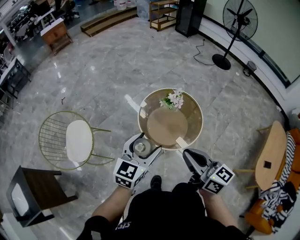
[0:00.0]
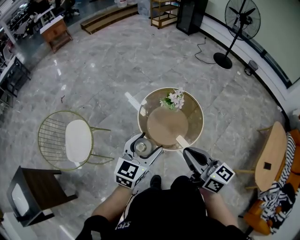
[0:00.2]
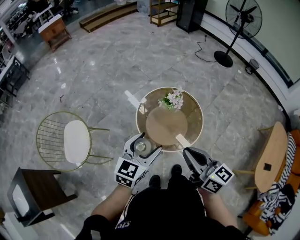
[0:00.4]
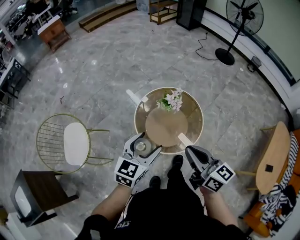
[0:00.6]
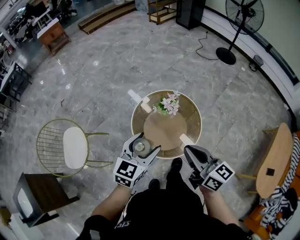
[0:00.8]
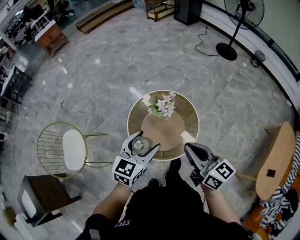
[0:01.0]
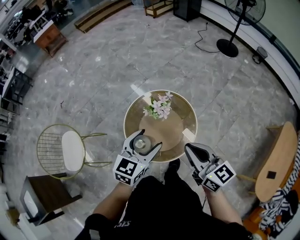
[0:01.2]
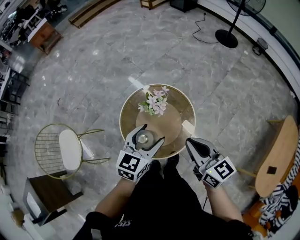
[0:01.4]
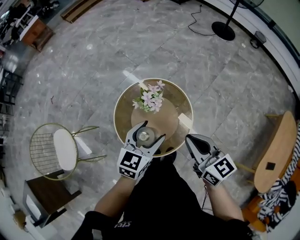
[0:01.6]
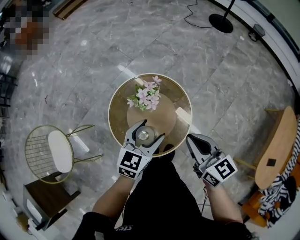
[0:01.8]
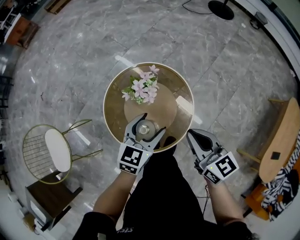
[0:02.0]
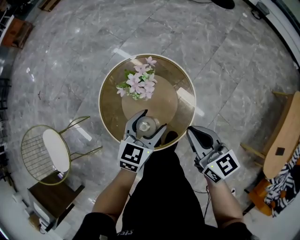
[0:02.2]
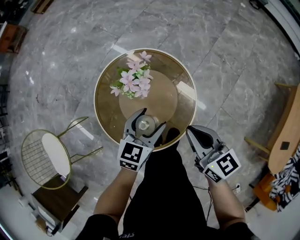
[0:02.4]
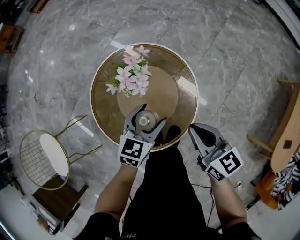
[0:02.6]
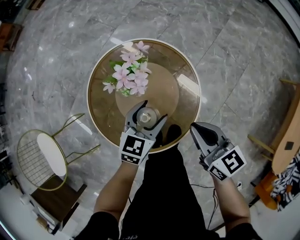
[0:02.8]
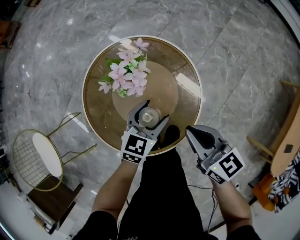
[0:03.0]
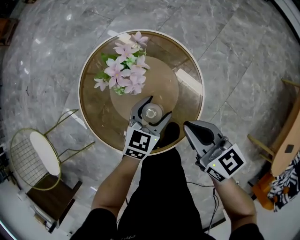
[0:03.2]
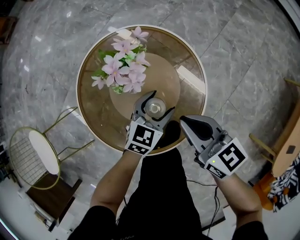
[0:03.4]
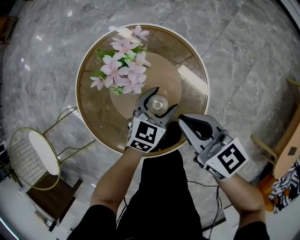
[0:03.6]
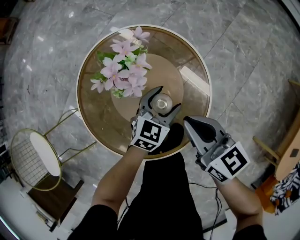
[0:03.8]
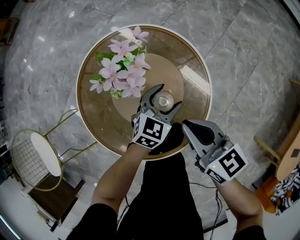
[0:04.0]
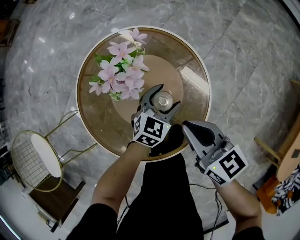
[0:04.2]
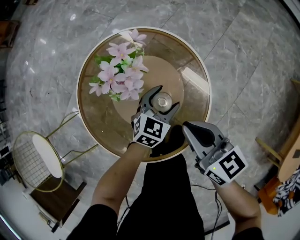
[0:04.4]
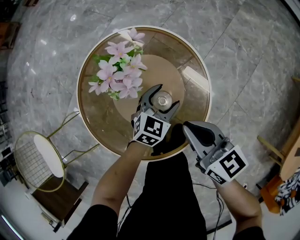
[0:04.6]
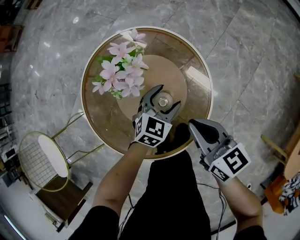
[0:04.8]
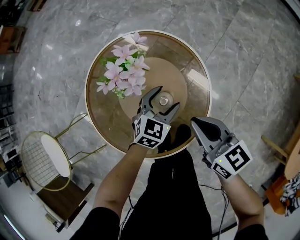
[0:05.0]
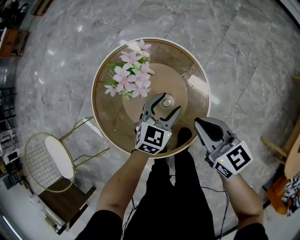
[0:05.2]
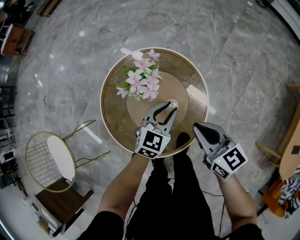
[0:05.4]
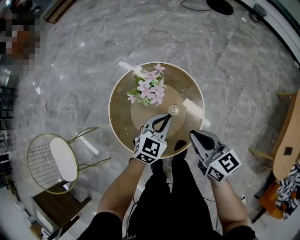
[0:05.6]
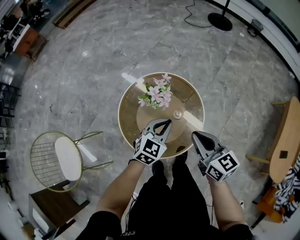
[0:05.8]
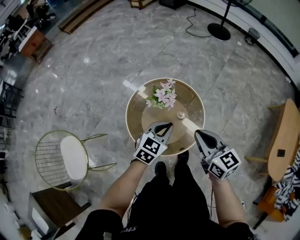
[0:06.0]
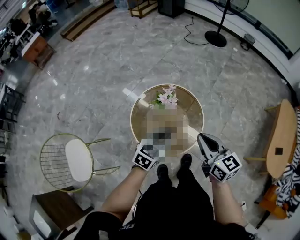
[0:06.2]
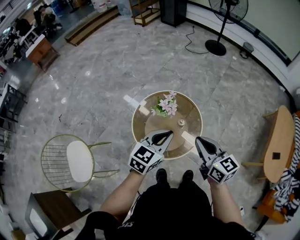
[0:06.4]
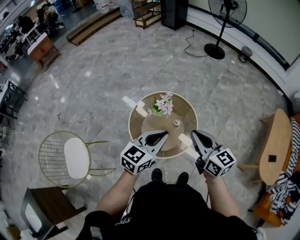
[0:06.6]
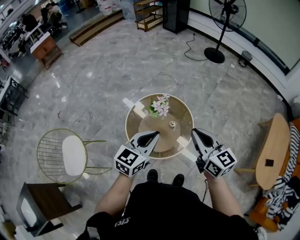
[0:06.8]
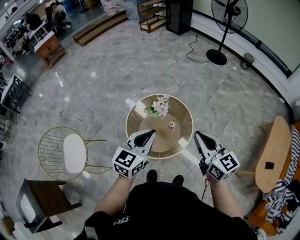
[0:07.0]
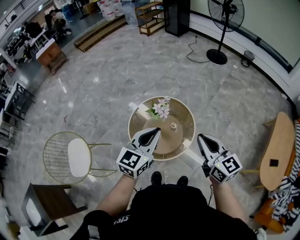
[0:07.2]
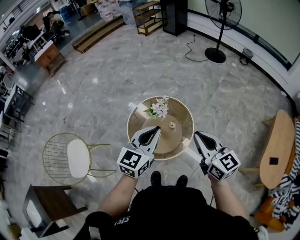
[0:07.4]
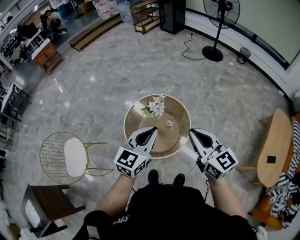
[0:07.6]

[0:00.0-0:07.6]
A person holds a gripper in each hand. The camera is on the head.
0:00.0 to 0:01.6: The left gripper is displaced to the right, forward and downward by some 40 cm. Meanwhile the right gripper is displaced forward, to the right and downward by about 40 cm.
0:01.6 to 0:03.0: Both grippers travel together downward, about 35 cm.
0:03.0 to 0:04.6: The left gripper travels downward by about 10 cm; the right gripper is displaced downward by some 5 cm.
0:04.6 to 0:06.0: The two grippers go approximately 35 cm upward. The left gripper closes its fingers.
0:06.0 to 0:07.6: The grippers both shift upward and backward by roughly 25 cm. The left gripper turns by about 20 degrees.

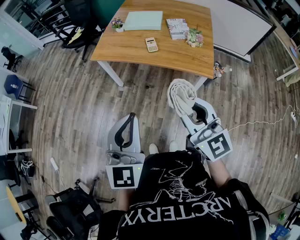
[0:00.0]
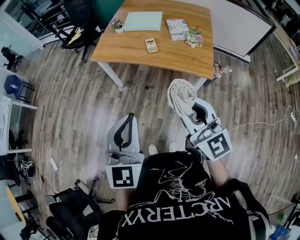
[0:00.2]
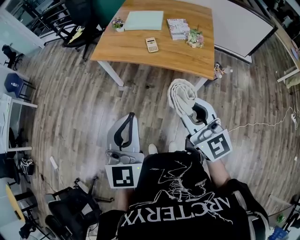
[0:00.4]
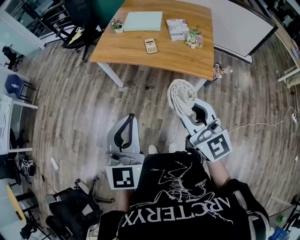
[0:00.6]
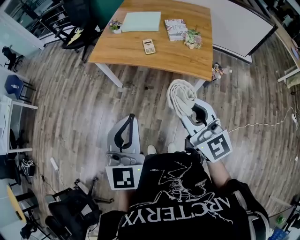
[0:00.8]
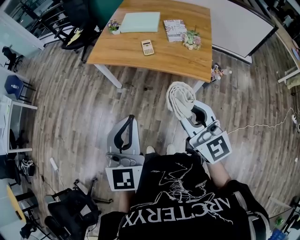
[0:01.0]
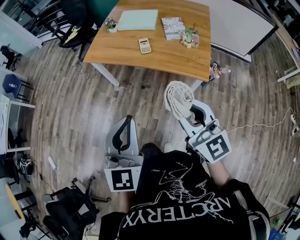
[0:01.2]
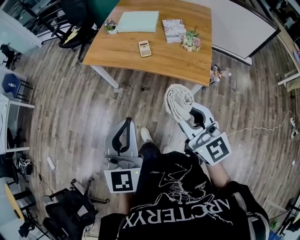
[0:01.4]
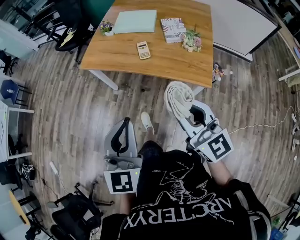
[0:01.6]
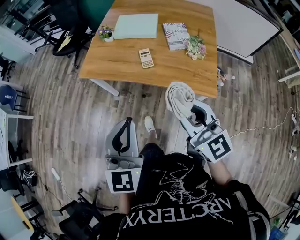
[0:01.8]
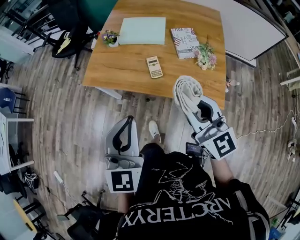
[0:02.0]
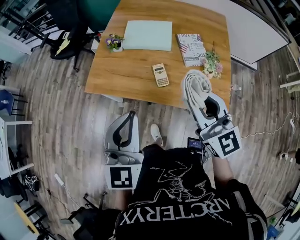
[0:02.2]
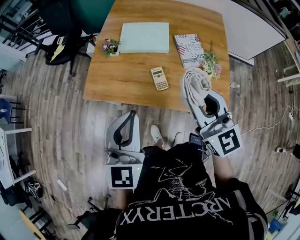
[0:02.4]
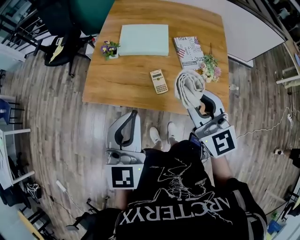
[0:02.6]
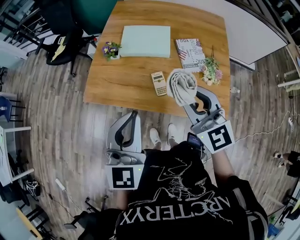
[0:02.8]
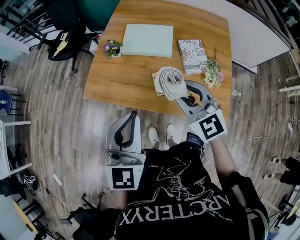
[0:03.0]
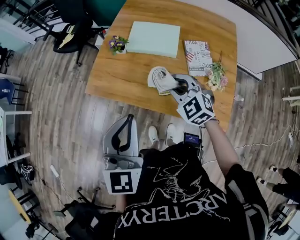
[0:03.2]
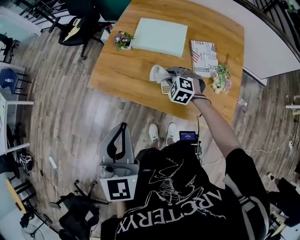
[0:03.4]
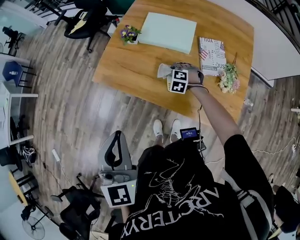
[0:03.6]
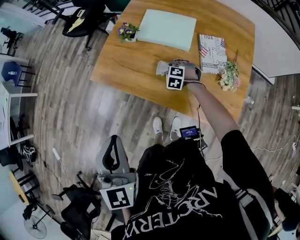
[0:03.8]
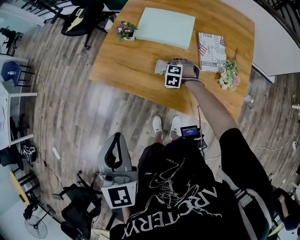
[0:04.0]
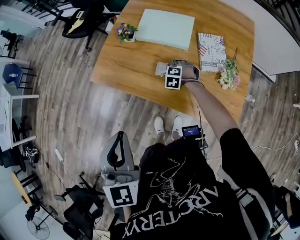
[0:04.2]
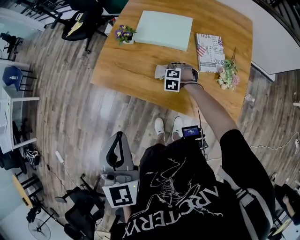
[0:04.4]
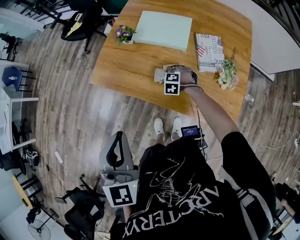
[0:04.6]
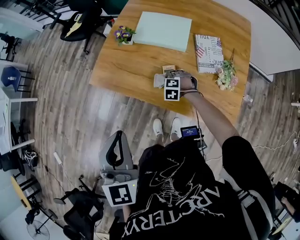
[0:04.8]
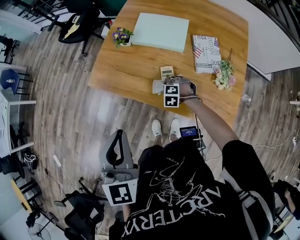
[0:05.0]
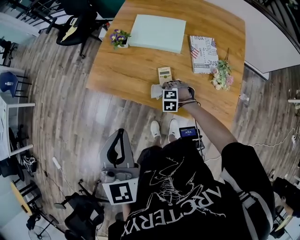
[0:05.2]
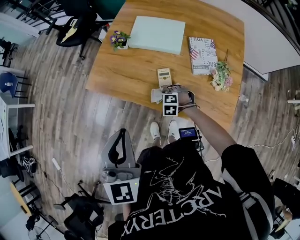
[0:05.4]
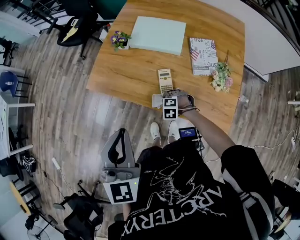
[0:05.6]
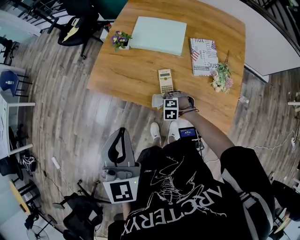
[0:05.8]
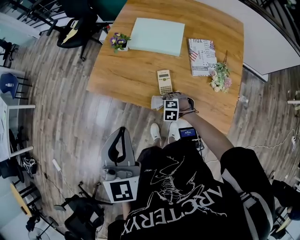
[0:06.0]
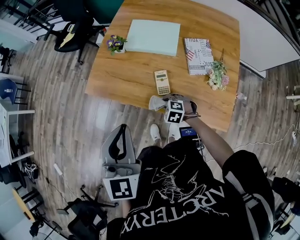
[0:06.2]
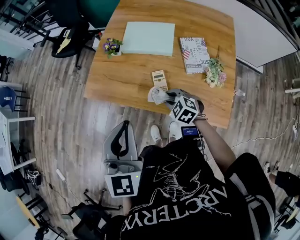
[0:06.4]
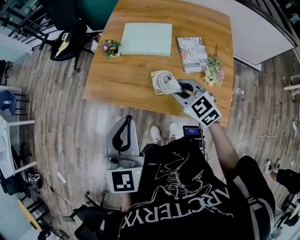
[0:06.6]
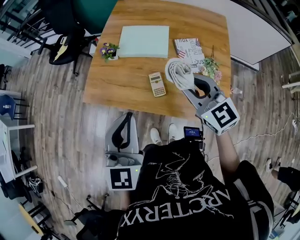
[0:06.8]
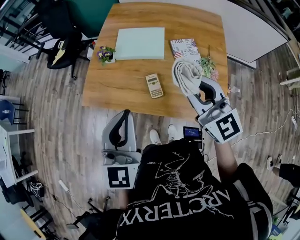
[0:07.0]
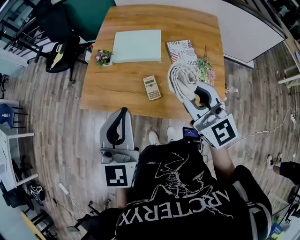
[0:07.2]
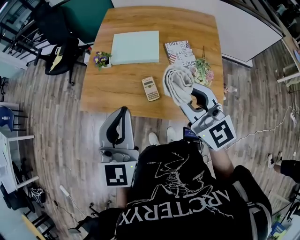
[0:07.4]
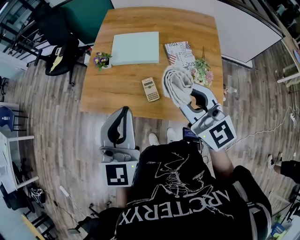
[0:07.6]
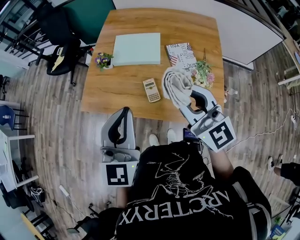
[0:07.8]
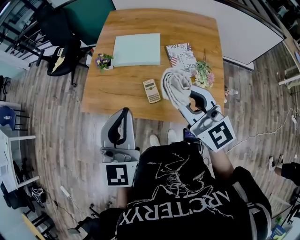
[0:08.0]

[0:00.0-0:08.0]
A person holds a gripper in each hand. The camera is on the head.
0:00.0 to 0:01.6: Both grippers travel together forward and to the right, some 10 cm.
0:01.6 to 0:03.2: Both grippers move forward, approximately 35 cm. The right gripper tilts its fingers approximately 40 degrees downward.
0:03.2 to 0:04.8: The right gripper travels downward by roughly 30 cm, and points its fingers about 40 degrees further downward, while the left gripper shifts by some 5 cm.
0:04.8 to 0:06.4: The right gripper is displaced upward by approximately 15 cm, and changes its angle by some 30 degrees; the left gripper changes place by about 5 cm.
0:06.4 to 0:08.0: The left gripper shifts by some 5 cm. The right gripper is displaced upward by approximately 30 cm, and tilts its fingers some 50 degrees upward.

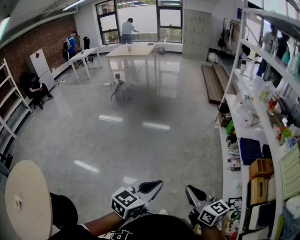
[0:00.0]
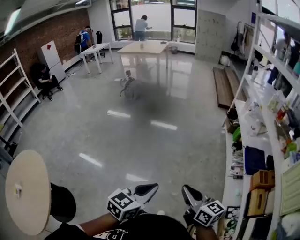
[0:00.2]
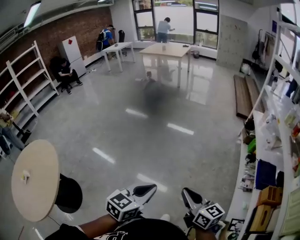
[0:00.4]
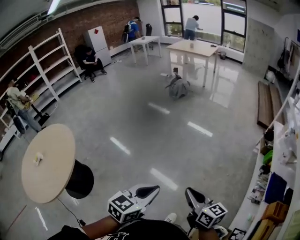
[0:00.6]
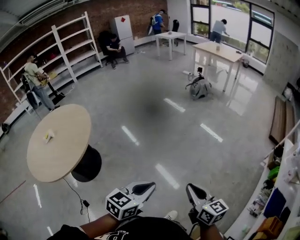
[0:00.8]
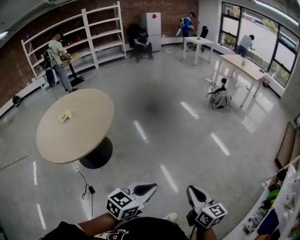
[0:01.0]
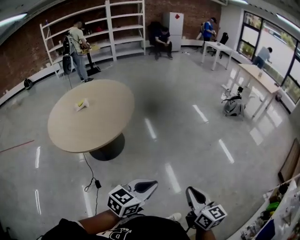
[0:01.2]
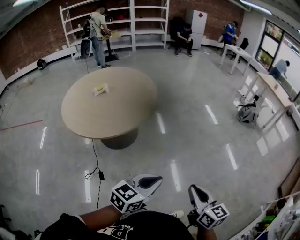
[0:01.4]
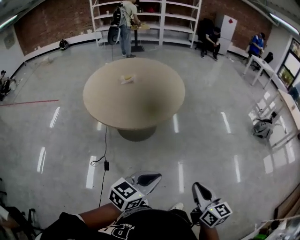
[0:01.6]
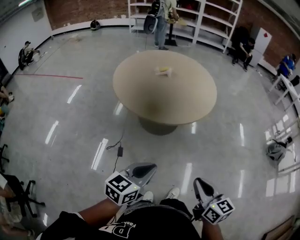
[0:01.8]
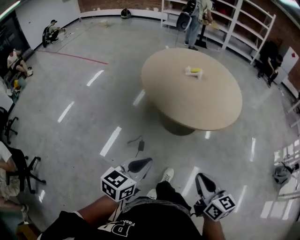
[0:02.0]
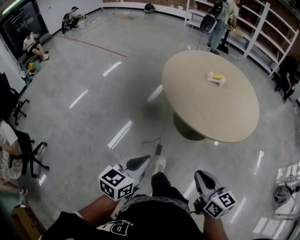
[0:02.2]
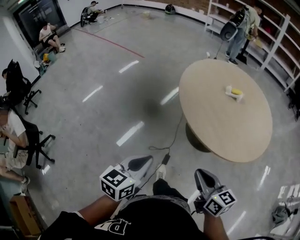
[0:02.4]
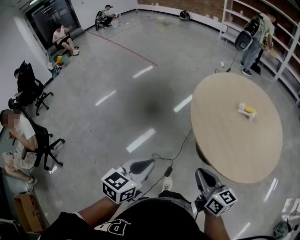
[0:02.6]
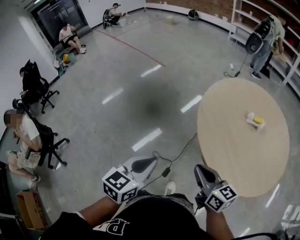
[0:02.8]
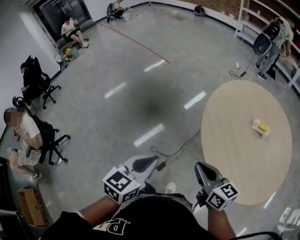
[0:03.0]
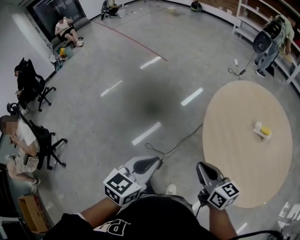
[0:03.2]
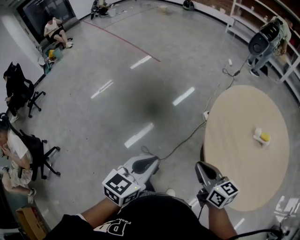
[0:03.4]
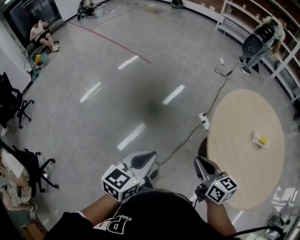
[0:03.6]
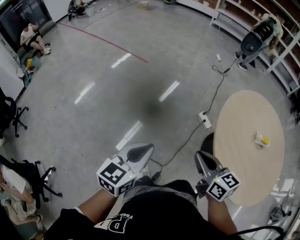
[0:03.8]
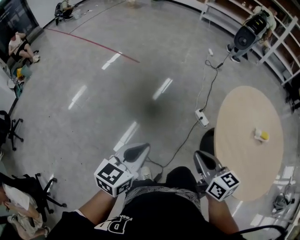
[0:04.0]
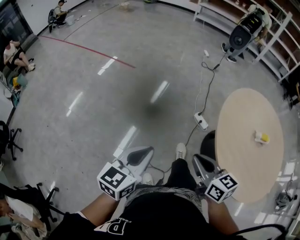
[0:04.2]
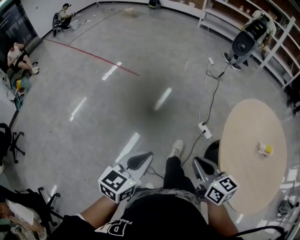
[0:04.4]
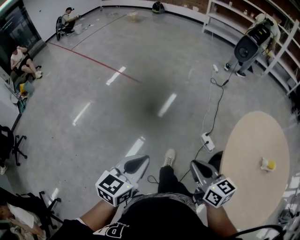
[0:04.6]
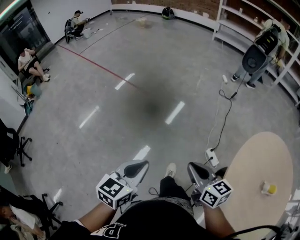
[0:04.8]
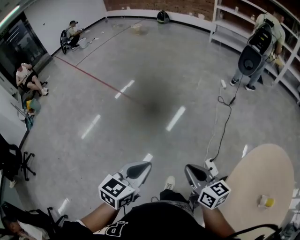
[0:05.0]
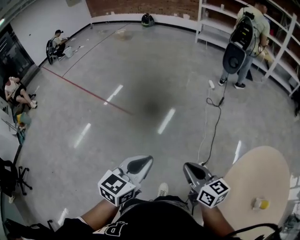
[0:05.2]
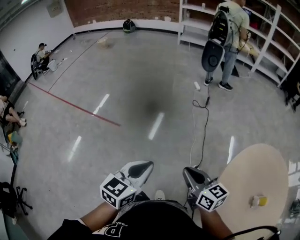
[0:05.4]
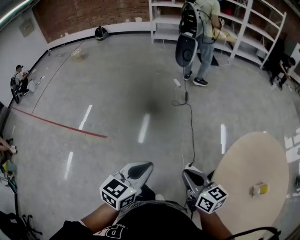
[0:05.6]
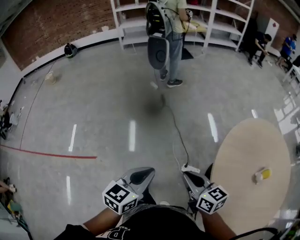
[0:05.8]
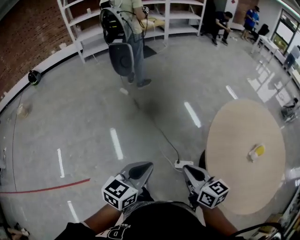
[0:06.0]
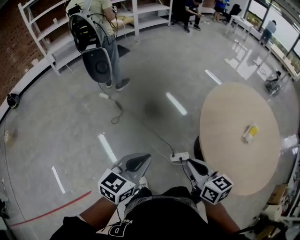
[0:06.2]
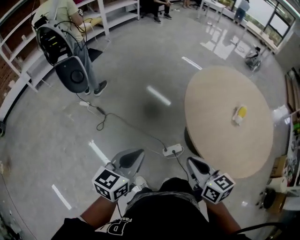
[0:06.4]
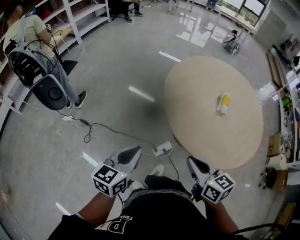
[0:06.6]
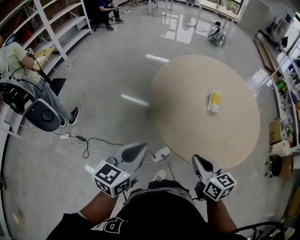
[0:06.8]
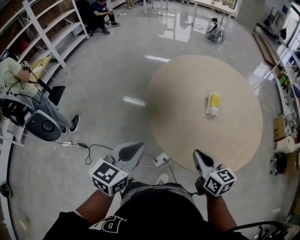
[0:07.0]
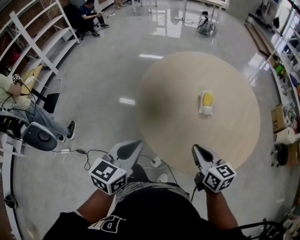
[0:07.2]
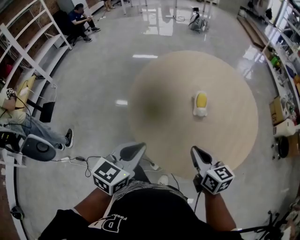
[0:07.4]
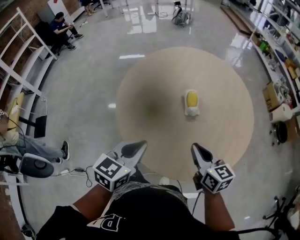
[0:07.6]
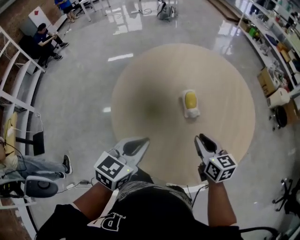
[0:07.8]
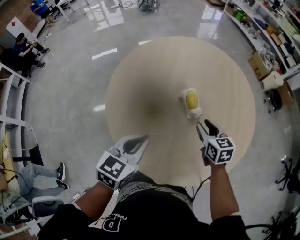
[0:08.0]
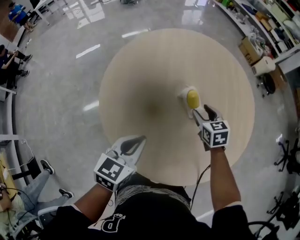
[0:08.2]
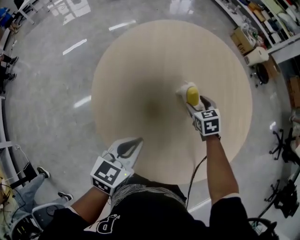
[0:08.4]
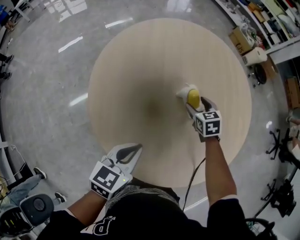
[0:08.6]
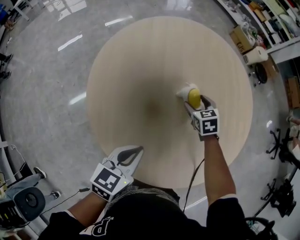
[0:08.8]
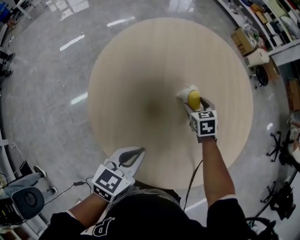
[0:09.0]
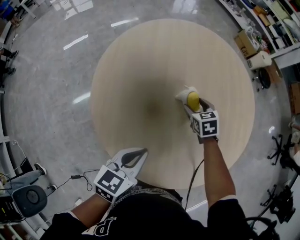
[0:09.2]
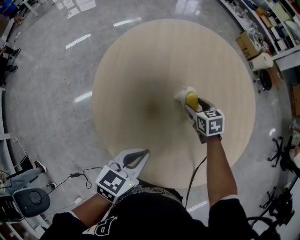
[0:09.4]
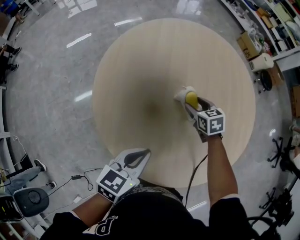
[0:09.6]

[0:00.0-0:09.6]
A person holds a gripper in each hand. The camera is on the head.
0:00.0 to 0:01.6: The pair of grippers is taken about 60 cm. The left gripper changes its angle by about 70 degrees, while the right gripper swivels some 60 degrees.
0:01.6 to 0:03.2: The pair of grippers is taken about 70 cm. The left gripper rotates roughly 60 degrees; the right gripper swivels some 60 degrees.
0:03.2 to 0:04.8: The pair of grippers is taken forward and to the left, roughly 60 cm.
0:04.8 to 0:06.4: The two grippers travel together, some 60 cm. The left gripper rotates approximately 80 degrees. Meanwhile the right gripper swivels about 80 degrees.
0:06.4 to 0:08.0: The two grippers travel together, about 60 cm. The right gripper turns by about 60 degrees, and opens up. The left gripper changes its angle by some 60 degrees.
0:08.0 to 0:09.6: The left gripper shifts some 5 cm downward. Meanwhile the right gripper heads forward, downward and to the left, covering some 15 cm, and opens its fingers.
